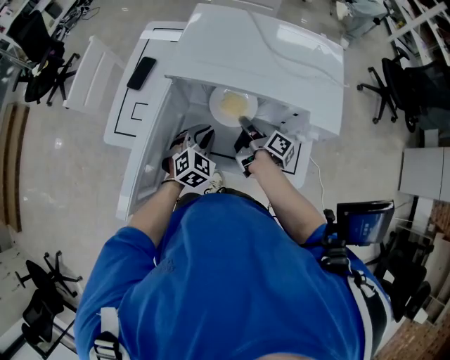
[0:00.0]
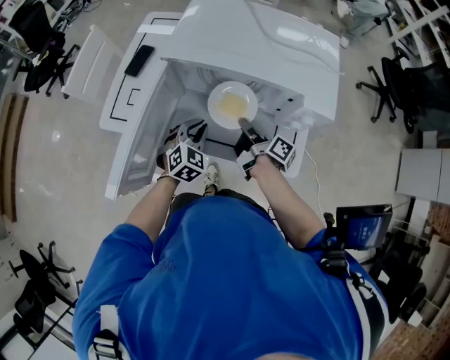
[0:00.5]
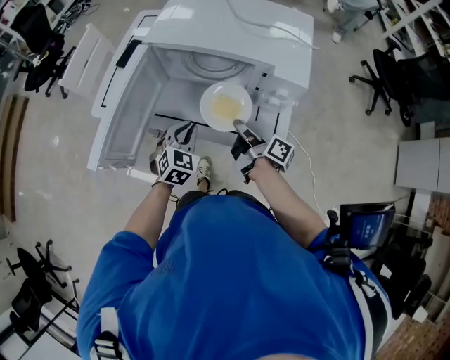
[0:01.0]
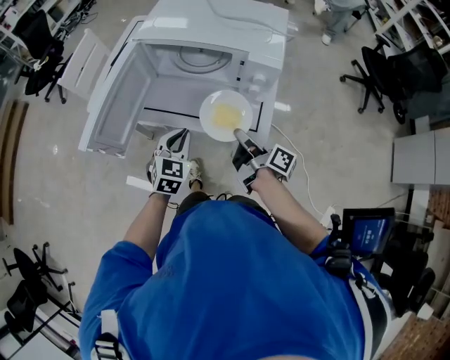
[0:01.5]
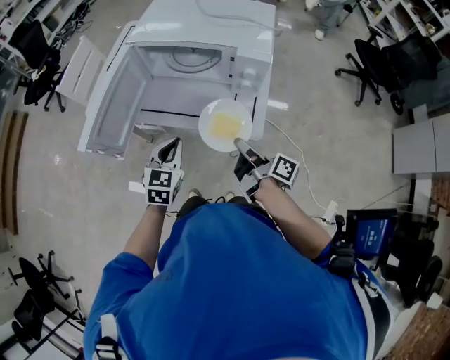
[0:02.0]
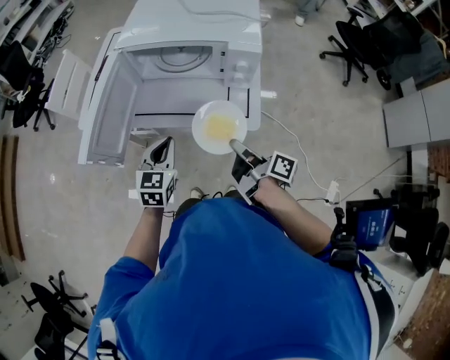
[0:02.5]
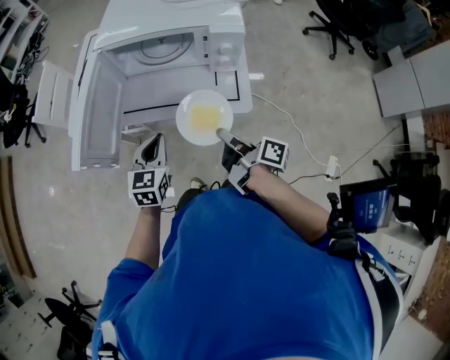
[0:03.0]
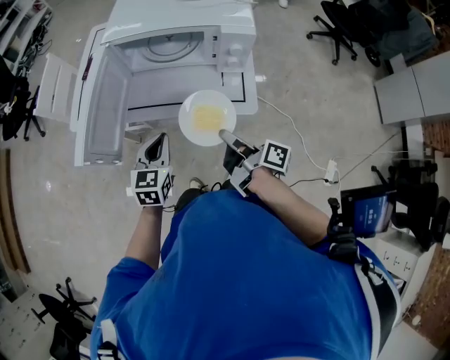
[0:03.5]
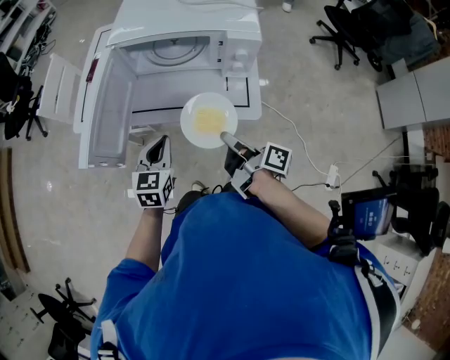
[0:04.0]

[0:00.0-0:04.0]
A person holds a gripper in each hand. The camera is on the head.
0:00.0 to 0:02.0: The grippers both shift backward by about 25 cm. The left gripper swivels some 30 degrees.
0:02.0 to 0:04.0: The right gripper travels to the left by some 5 cm.

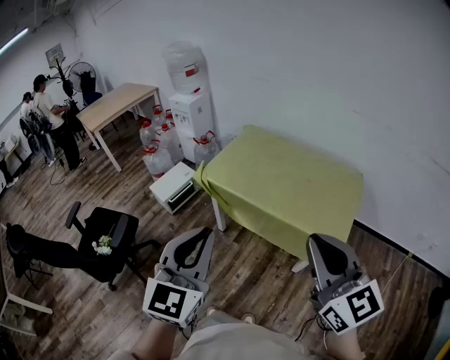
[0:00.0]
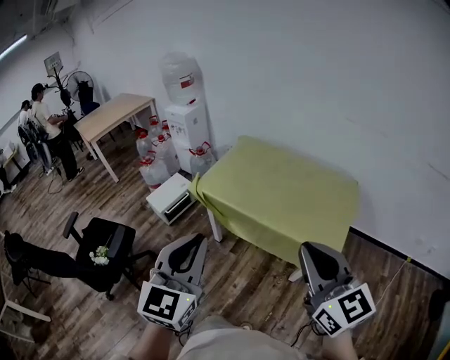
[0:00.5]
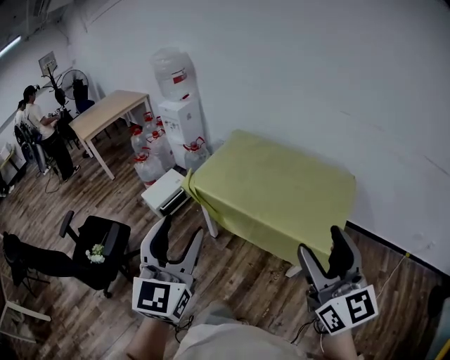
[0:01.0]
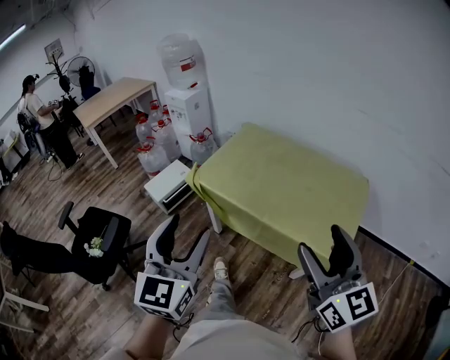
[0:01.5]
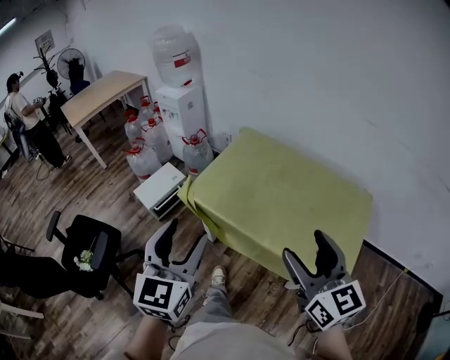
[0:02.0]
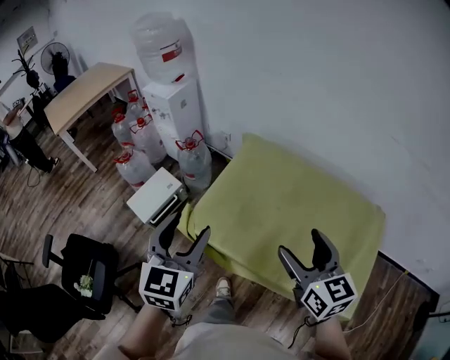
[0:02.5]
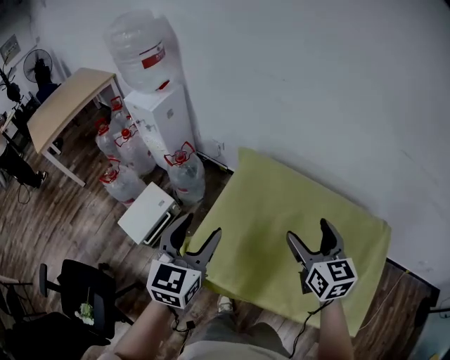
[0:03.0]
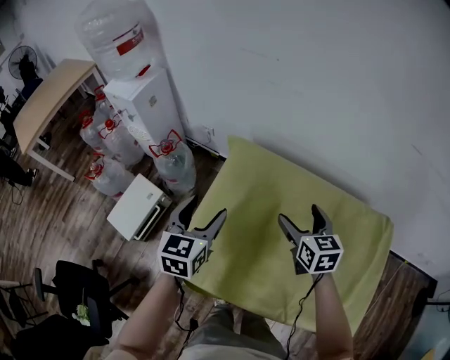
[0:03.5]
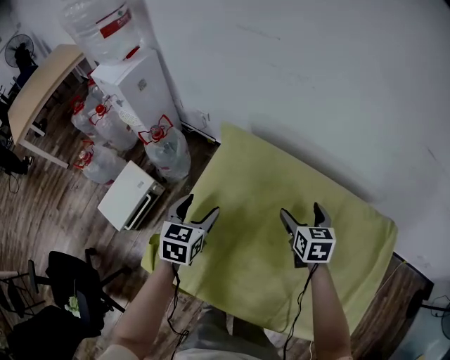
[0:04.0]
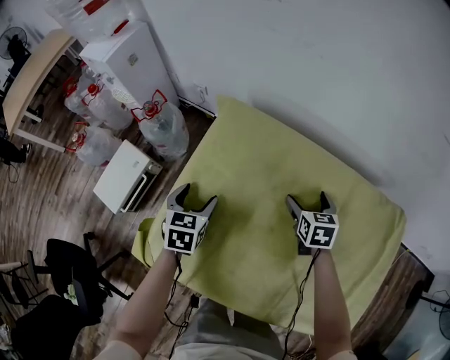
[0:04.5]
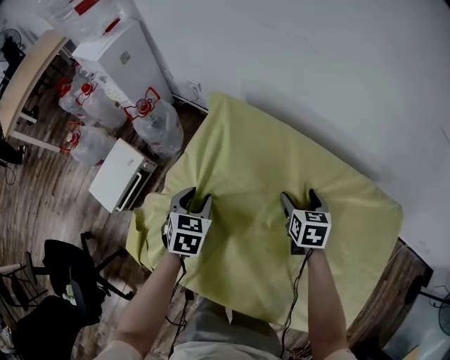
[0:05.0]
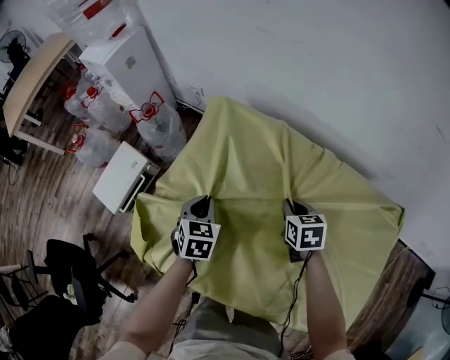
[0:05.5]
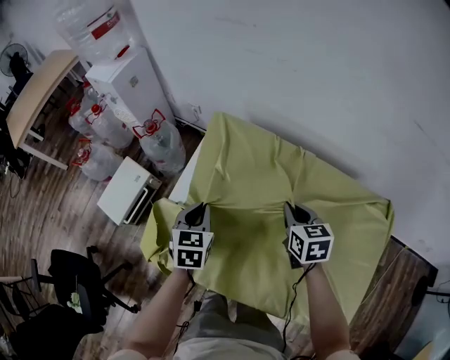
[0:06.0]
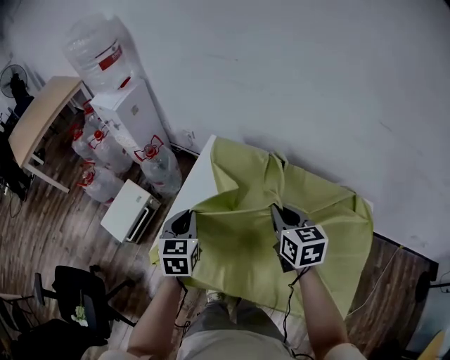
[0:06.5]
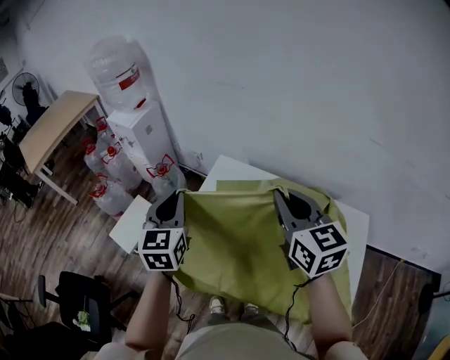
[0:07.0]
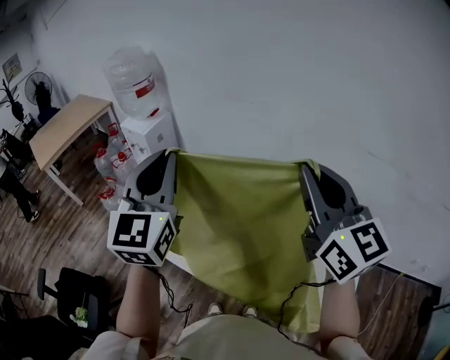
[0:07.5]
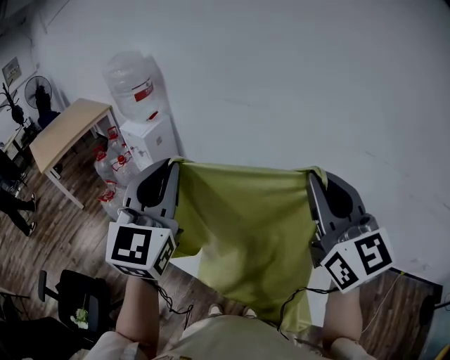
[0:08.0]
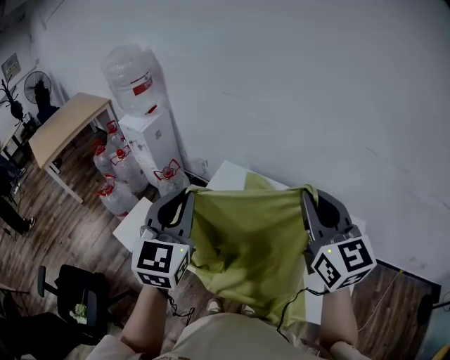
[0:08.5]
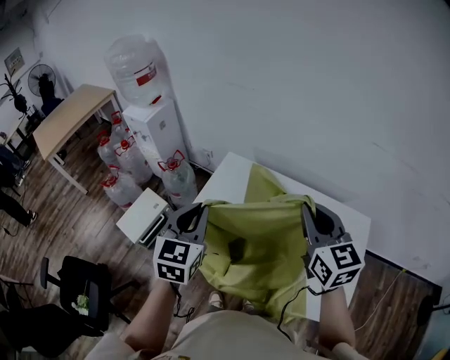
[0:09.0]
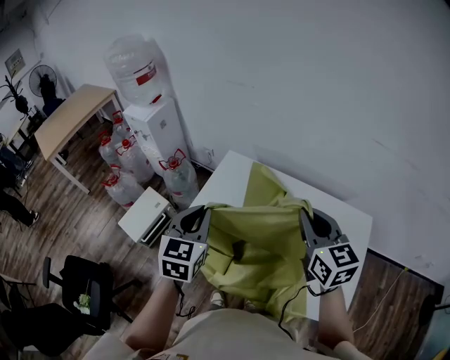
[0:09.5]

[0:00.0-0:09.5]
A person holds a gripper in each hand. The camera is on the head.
0:00.0 to 0:02.0: The grippers both shift forward by about 25 cm. The left gripper opens; the right gripper opens.
0:02.0 to 0:04.0: The two grippers travel together, forward, some 50 cm. The grippers both shift downward by roughly 35 cm. The left gripper swivels about 30 degrees, while the right gripper angles its fingers downward, by roughly 40 degrees.
0:04.0 to 0:05.5: The right gripper is displaced downward by some 10 cm, and closes up; the left gripper heads downward and to the right, covering some 10 cm, and closes.
0:05.5 to 0:07.5: The two grippers go roughly 60 cm upward. The left gripper tips its fingers upward by about 50 degrees. The right gripper tilts its fingers some 60 degrees upward.
0:07.5 to 0:09.5: Both grippers travel together downward, about 20 cm. The right gripper turns by some 20 degrees. The left gripper rotates roughly 30 degrees.

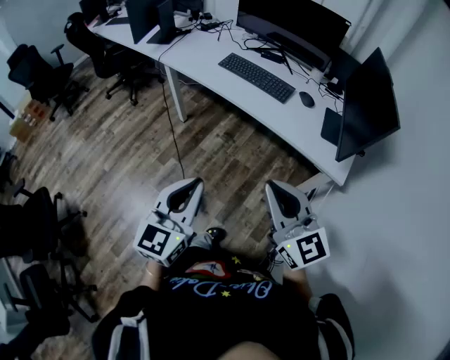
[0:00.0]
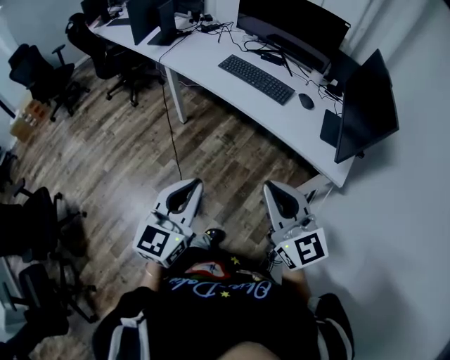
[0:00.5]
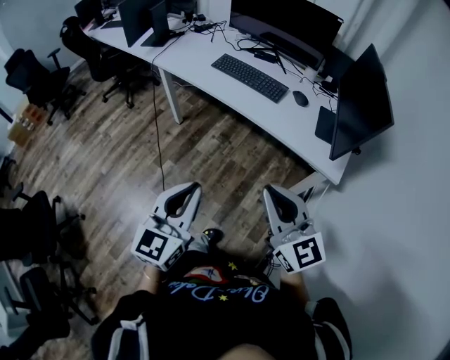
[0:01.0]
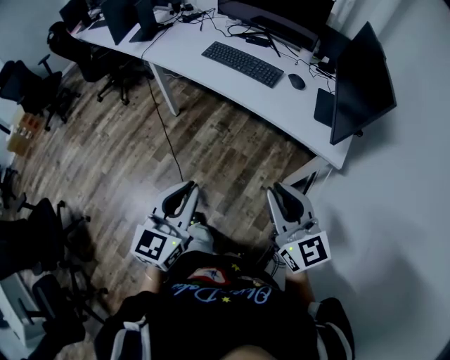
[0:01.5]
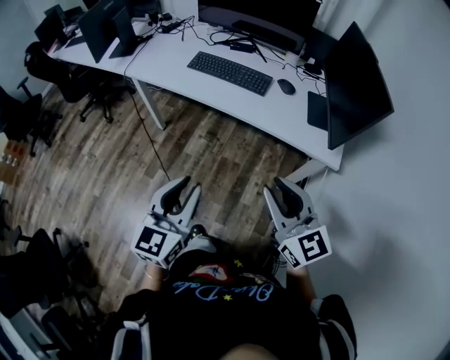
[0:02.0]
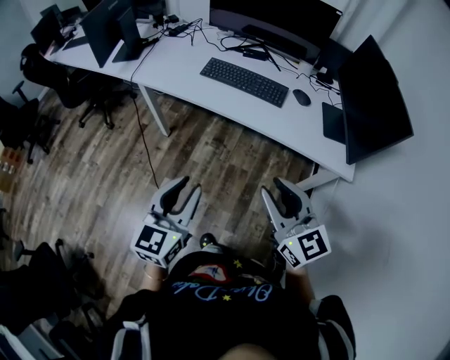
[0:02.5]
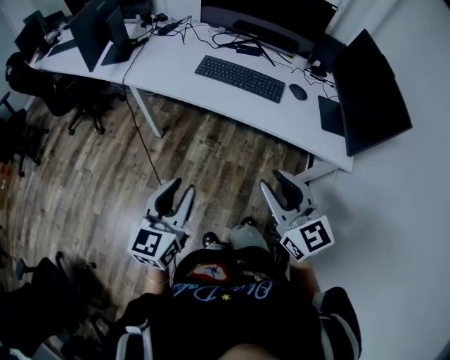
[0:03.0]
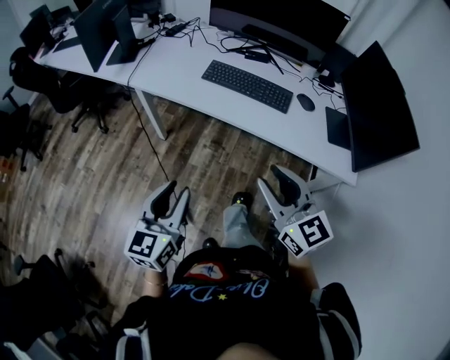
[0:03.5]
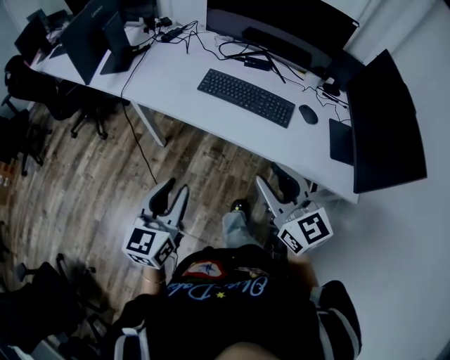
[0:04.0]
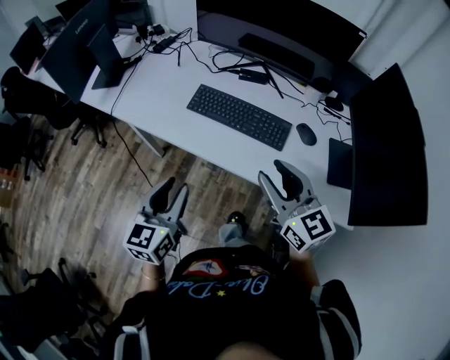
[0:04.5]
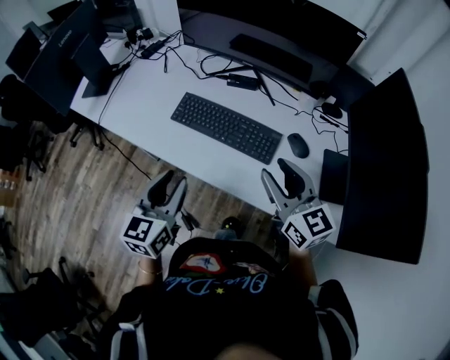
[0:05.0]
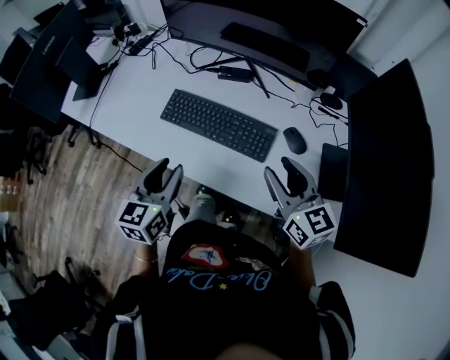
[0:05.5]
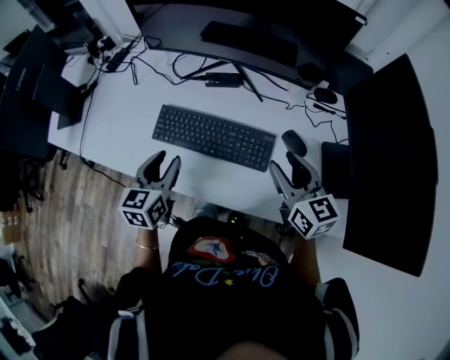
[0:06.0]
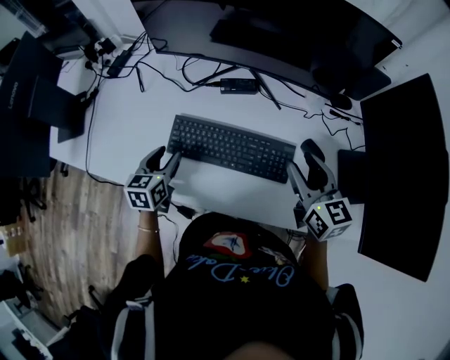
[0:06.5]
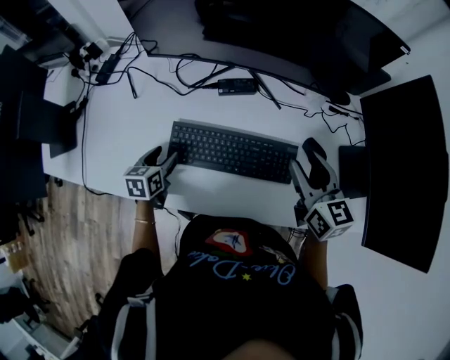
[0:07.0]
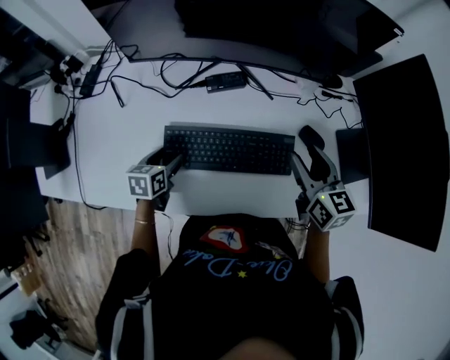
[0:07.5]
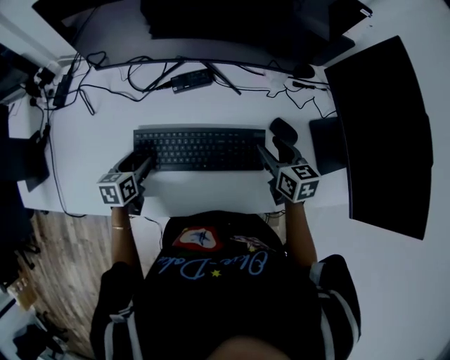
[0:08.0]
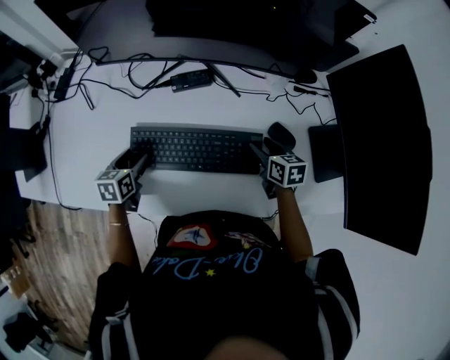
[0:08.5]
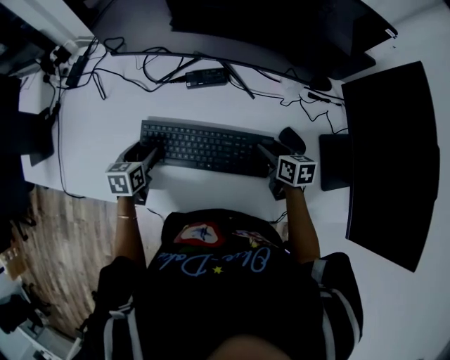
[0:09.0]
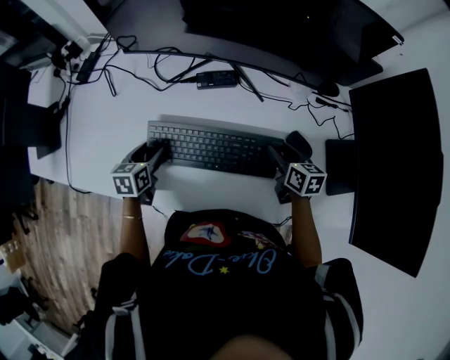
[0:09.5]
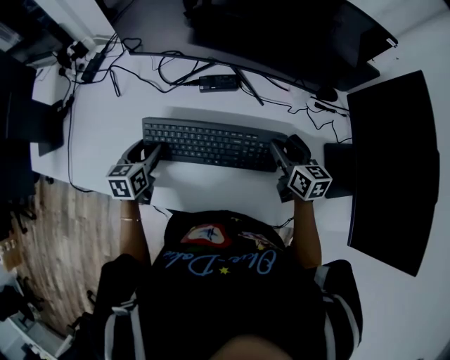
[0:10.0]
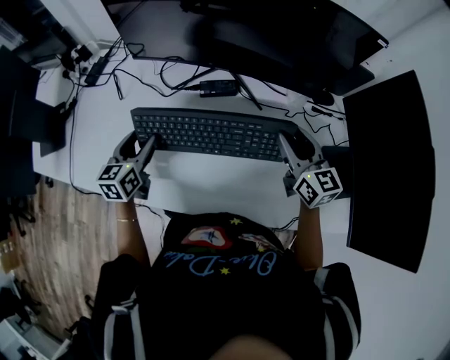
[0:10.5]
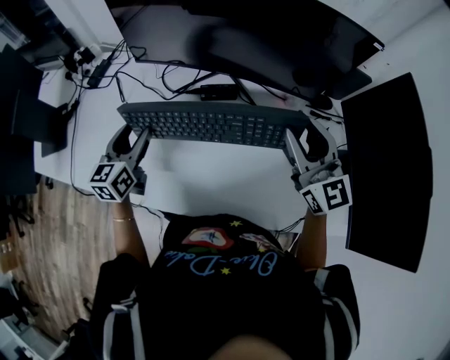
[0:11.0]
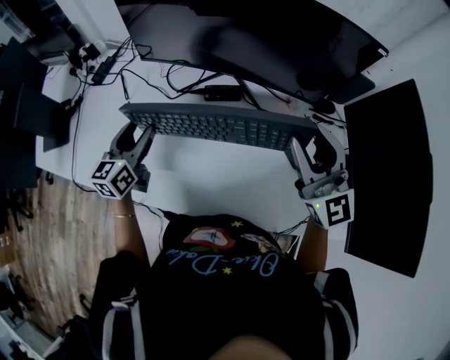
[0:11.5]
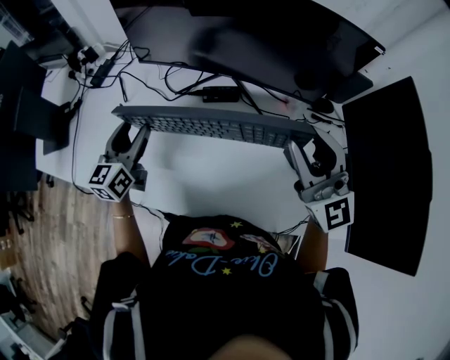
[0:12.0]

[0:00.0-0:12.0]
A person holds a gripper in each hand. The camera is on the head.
0:00.0 to 0:02.0: The left gripper is displaced forward by some 5 cm; the right gripper changes place by roughly 5 cm.
0:02.0 to 0:04.0: The grippers both shift forward and to the left by approximately 25 cm.
0:04.0 to 0:06.0: The left gripper moves forward, some 35 cm. The right gripper travels forward and to the right by about 35 cm, and swivels approximately 20 degrees.
0:06.0 to 0:08.0: The right gripper is displaced downward and forward by some 15 cm, and changes its angle by about 30 degrees. Meanwhile the left gripper heads downward, forward and to the left, covering some 20 cm, changes its angle by about 30 degrees, and opens.
0:08.0 to 0:10.0: The right gripper reaches some 10 cm downward, then returns.
0:10.0 to 0:12.0: The right gripper shifts about 25 cm upward, and points its fingers some 40 degrees further upward; the left gripper shifts approximately 15 cm upward, and swivels roughly 30 degrees.

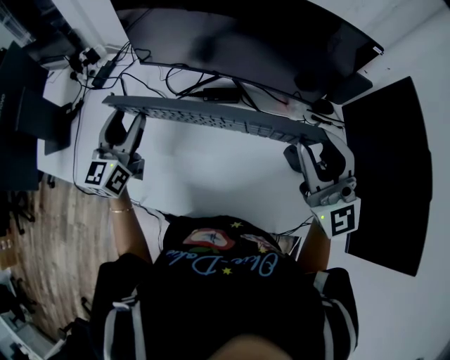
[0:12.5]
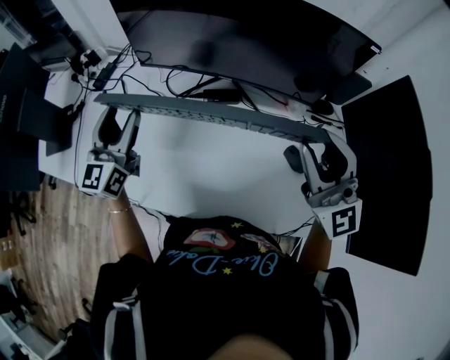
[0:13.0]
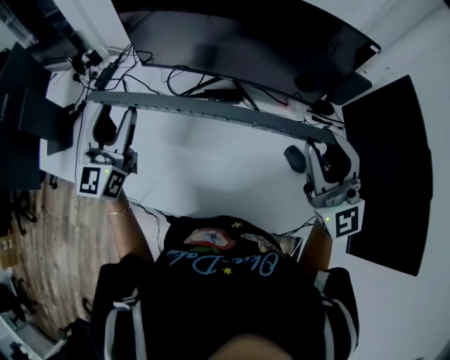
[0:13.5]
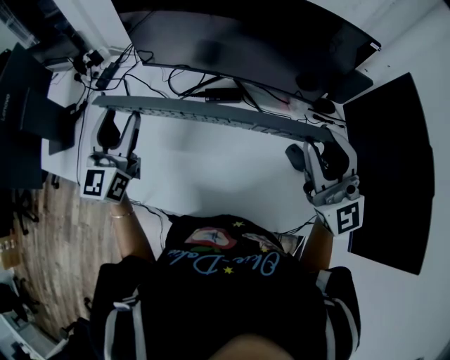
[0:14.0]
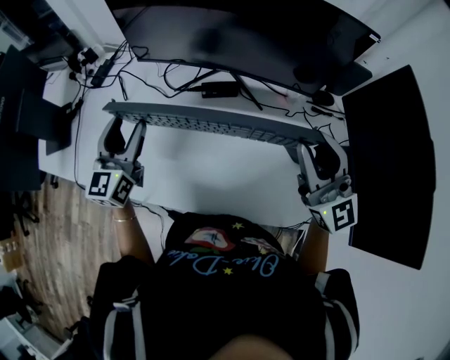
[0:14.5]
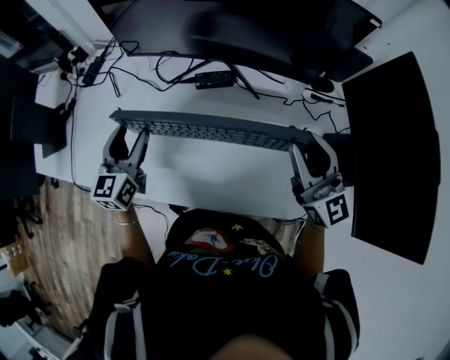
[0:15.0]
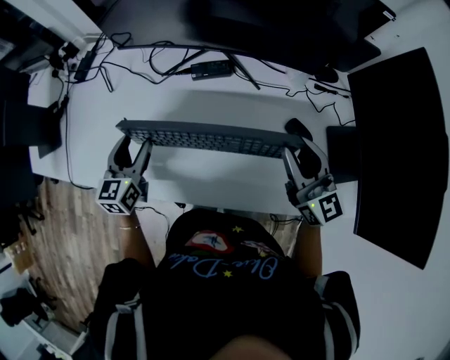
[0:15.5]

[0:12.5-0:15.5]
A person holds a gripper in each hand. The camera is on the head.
0:12.5 to 0:14.0: The left gripper moves about 5 cm.
0:14.0 to 0:15.5: Both grippers travel together downward, roughly 15 cm. The right gripper turns by approximately 30 degrees, while the left gripper turns by approximately 30 degrees.
